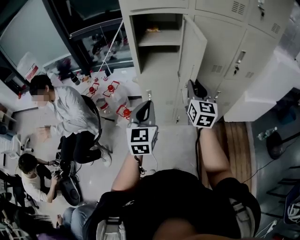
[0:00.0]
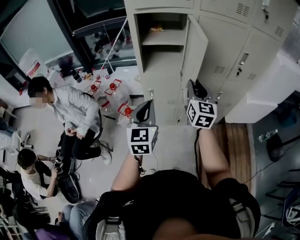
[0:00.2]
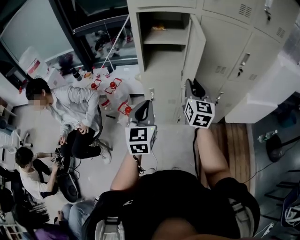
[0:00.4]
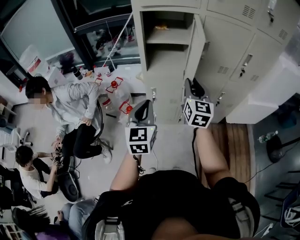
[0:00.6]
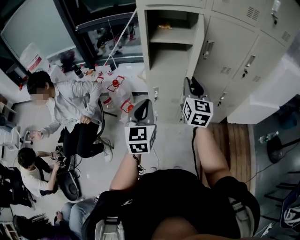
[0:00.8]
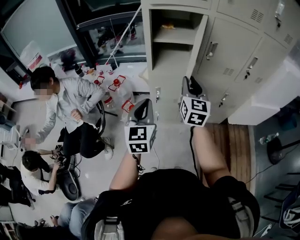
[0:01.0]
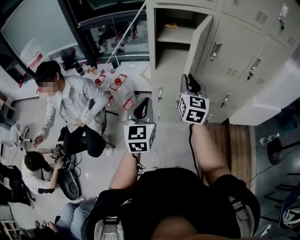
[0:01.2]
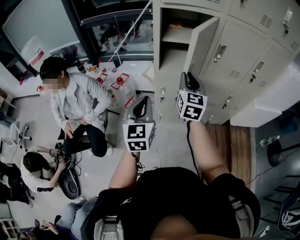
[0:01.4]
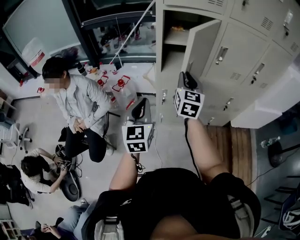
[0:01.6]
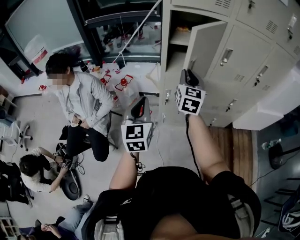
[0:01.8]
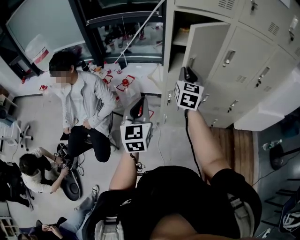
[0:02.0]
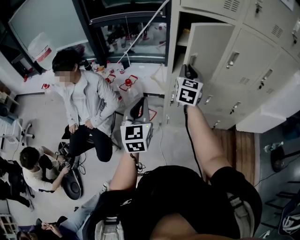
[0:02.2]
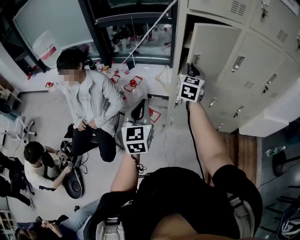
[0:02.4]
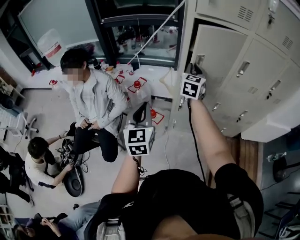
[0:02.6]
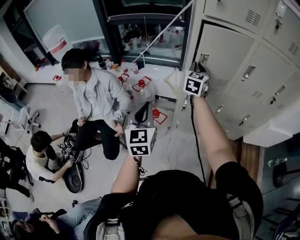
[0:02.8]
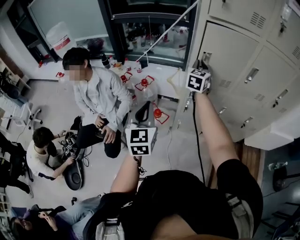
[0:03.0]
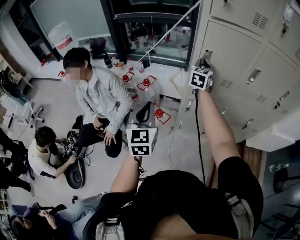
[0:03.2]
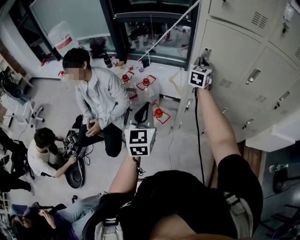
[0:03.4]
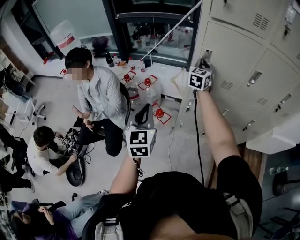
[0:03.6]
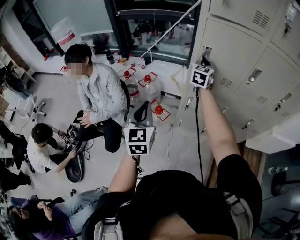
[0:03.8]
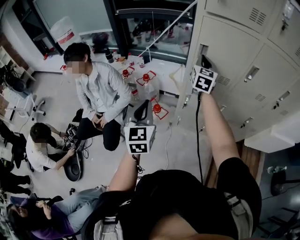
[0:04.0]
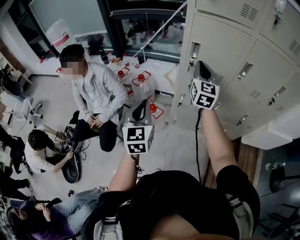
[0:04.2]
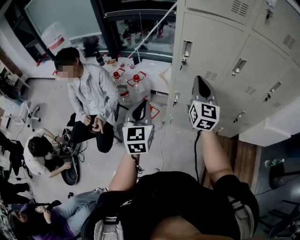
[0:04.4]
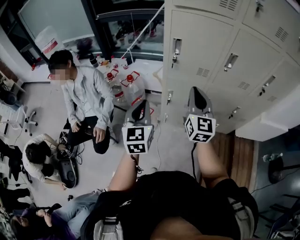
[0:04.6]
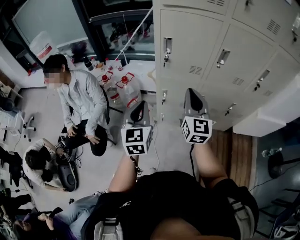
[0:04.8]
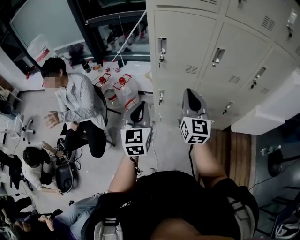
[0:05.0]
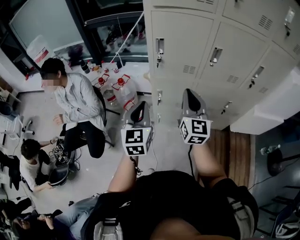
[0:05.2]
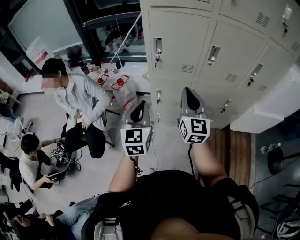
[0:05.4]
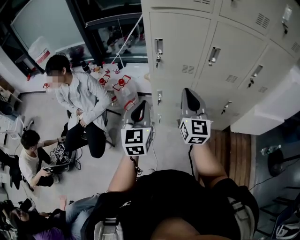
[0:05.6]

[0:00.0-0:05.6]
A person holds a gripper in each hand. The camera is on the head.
0:00.0 to 0:01.4: The grippers both shift to the left by some 15 cm.
0:01.4 to 0:02.8: The left gripper goes roughly 15 cm to the left; the right gripper travels forward and to the left by approximately 20 cm.
0:02.8 to 0:04.2: The right gripper is displaced backward by some 5 cm.
0:04.2 to 0:05.6: The right gripper travels backward and to the right by some 20 cm. The left gripper shifts roughly 15 cm to the right.

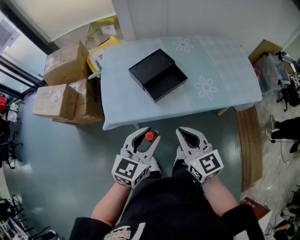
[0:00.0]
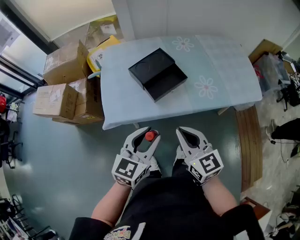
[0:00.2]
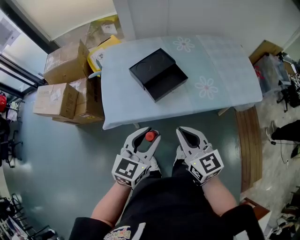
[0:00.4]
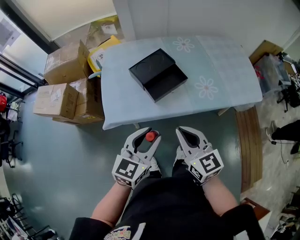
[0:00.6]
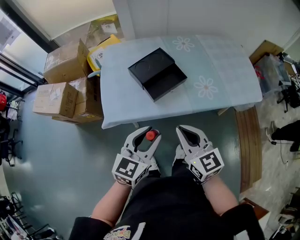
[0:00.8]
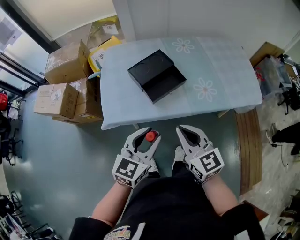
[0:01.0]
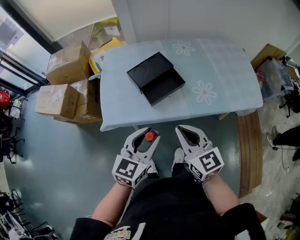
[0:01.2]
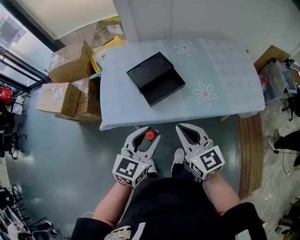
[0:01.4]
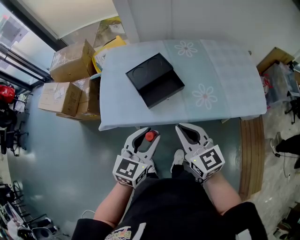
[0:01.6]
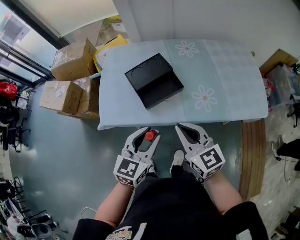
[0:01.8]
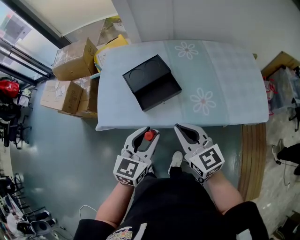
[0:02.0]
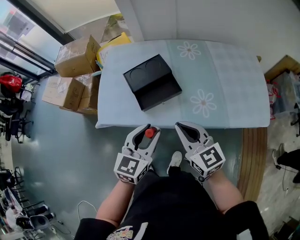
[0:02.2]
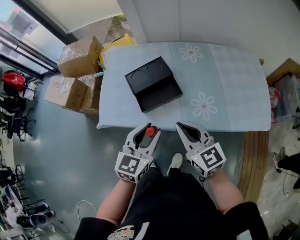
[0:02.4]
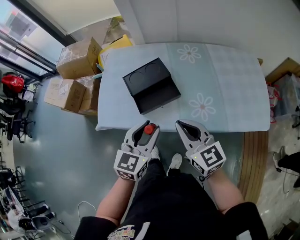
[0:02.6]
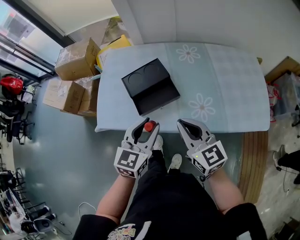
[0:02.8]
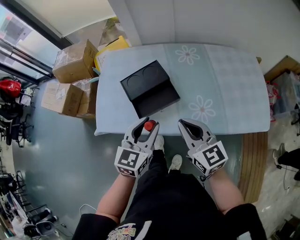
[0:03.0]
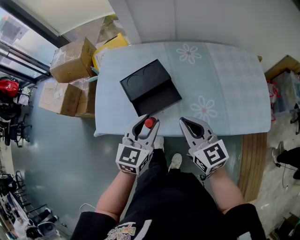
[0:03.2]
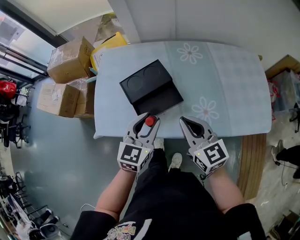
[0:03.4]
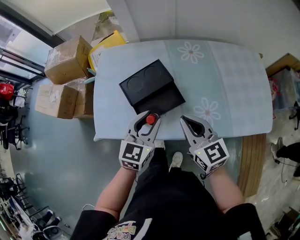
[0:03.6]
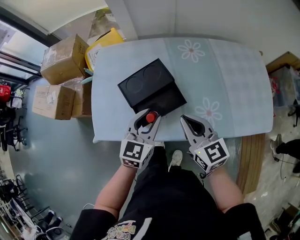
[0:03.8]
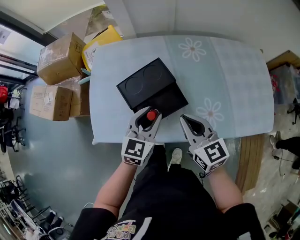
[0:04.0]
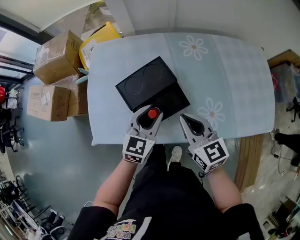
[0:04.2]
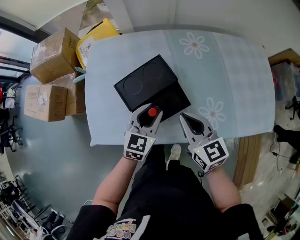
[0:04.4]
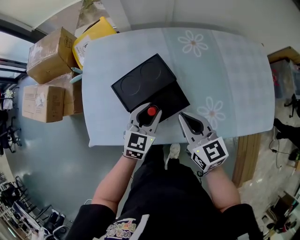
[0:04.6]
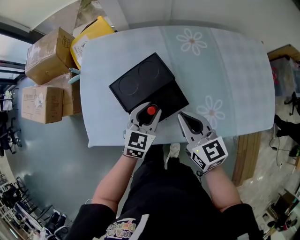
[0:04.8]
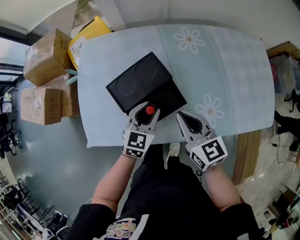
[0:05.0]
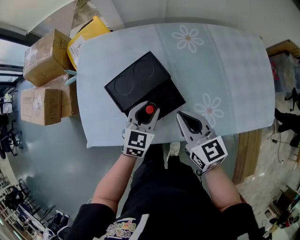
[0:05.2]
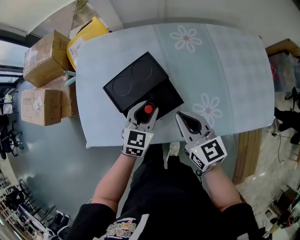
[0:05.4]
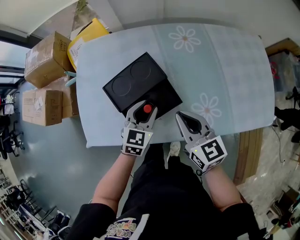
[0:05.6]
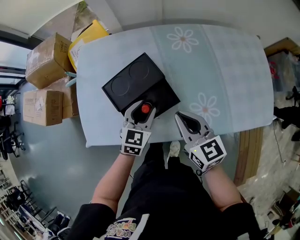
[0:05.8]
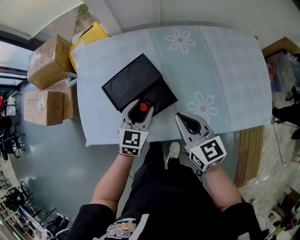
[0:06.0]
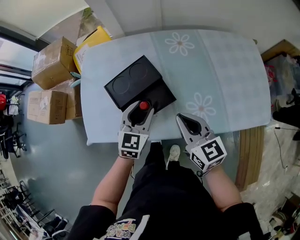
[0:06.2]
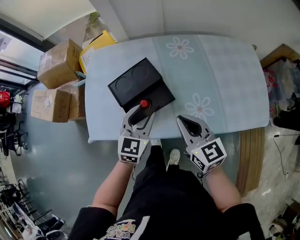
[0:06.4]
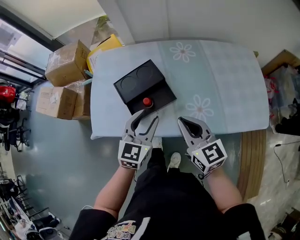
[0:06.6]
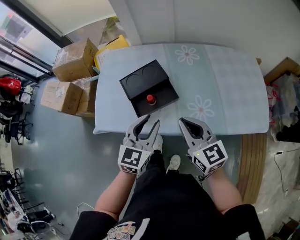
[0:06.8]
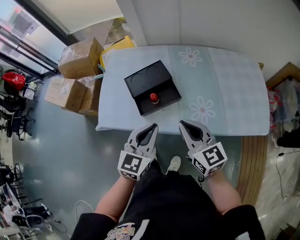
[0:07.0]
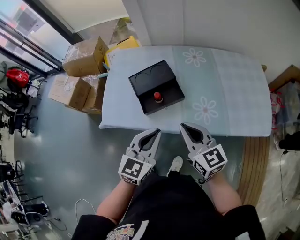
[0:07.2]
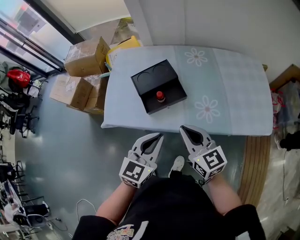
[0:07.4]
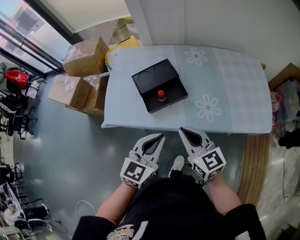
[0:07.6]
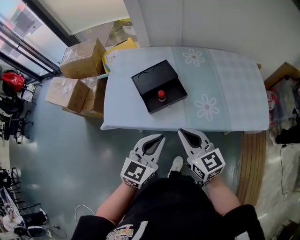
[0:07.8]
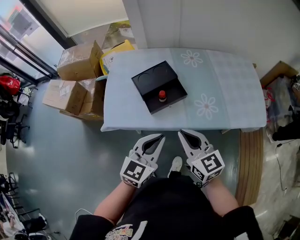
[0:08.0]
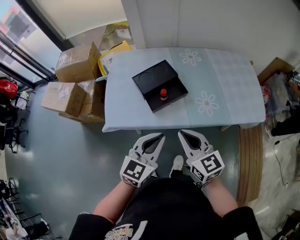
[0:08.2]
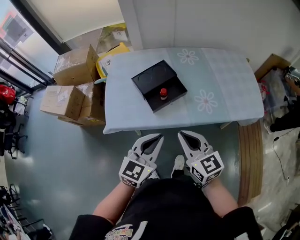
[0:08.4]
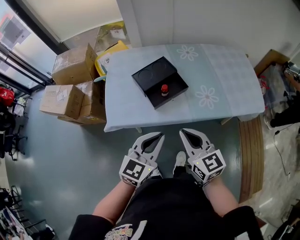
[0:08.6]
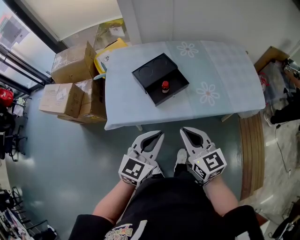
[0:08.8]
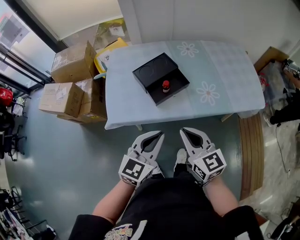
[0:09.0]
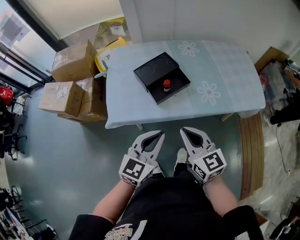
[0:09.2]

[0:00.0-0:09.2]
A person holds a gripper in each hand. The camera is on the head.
0:00.0 to 0:01.6: The left gripper moves to the right, approximately 5 cm. The right gripper travels to the right and forward by some 10 cm.
0:01.6 to 0:03.0: The two grippers go about 10 cm forward and to the right.
0:03.0 to 0:04.6: The grippers both shift forward and downward by some 20 cm.
0:04.6 to 0:06.2: The right gripper moves to the right, approximately 5 cm.
0:06.2 to 0:07.6: The right gripper is displaced backward by approximately 15 cm. Meanwhile the left gripper travels backward and upward by roughly 25 cm, and closes up.
0:07.6 to 0:09.2: The two grippers go approximately 10 cm to the left and backward.

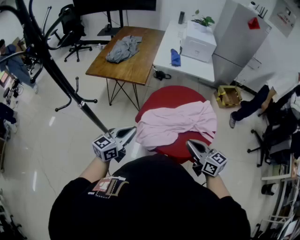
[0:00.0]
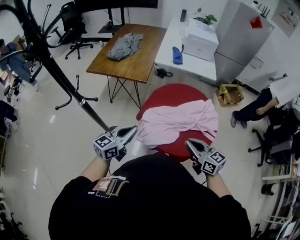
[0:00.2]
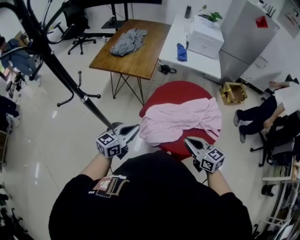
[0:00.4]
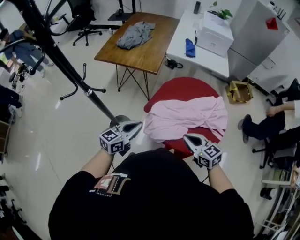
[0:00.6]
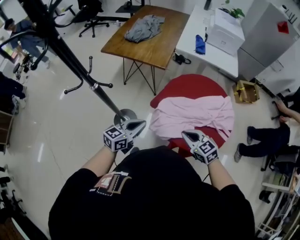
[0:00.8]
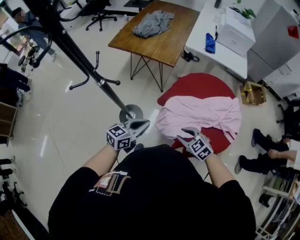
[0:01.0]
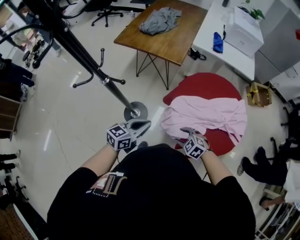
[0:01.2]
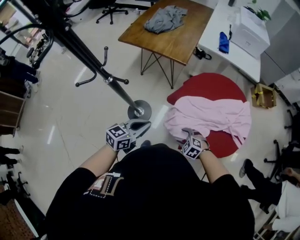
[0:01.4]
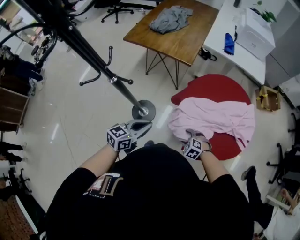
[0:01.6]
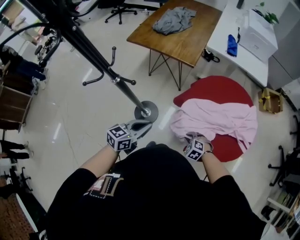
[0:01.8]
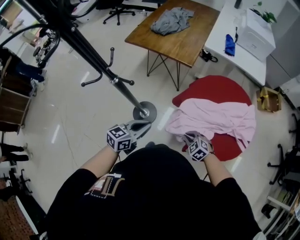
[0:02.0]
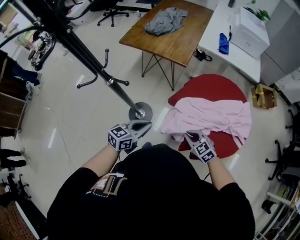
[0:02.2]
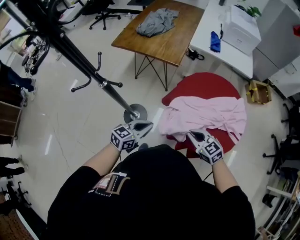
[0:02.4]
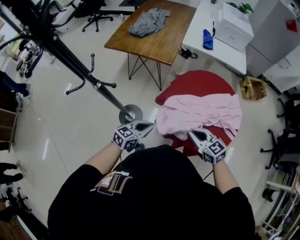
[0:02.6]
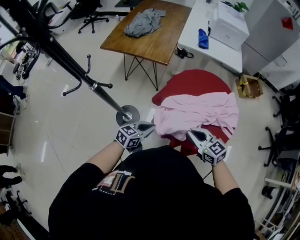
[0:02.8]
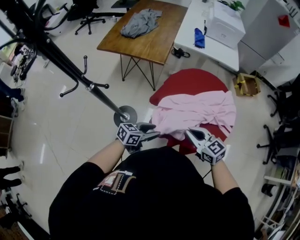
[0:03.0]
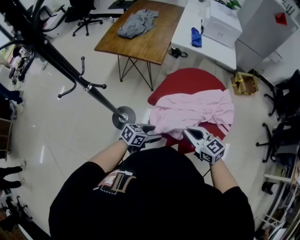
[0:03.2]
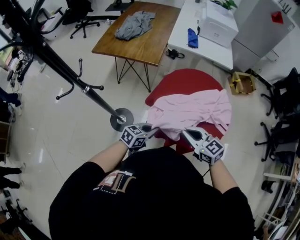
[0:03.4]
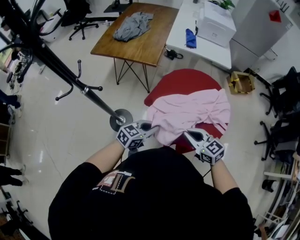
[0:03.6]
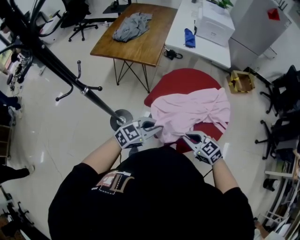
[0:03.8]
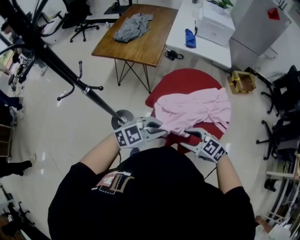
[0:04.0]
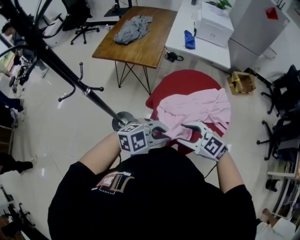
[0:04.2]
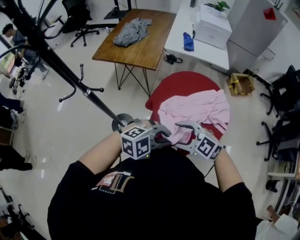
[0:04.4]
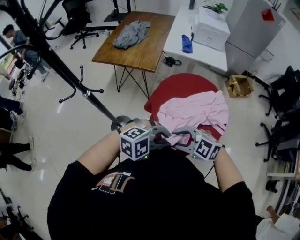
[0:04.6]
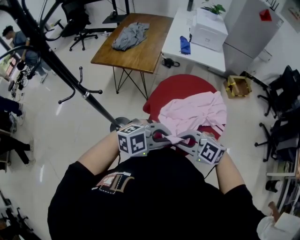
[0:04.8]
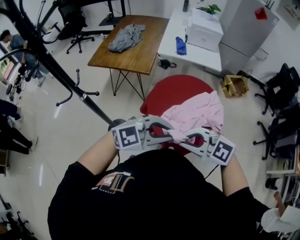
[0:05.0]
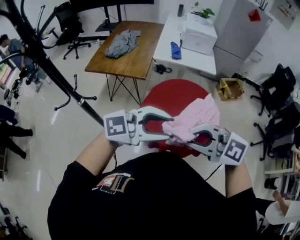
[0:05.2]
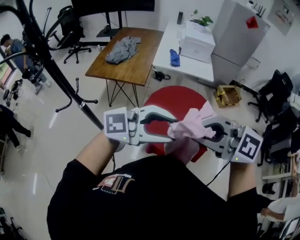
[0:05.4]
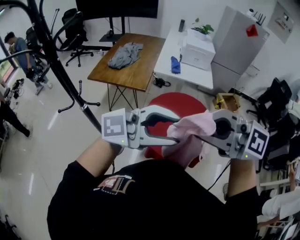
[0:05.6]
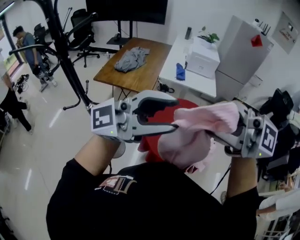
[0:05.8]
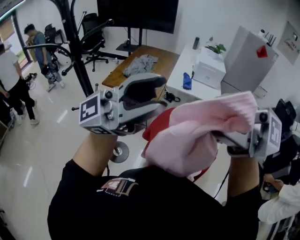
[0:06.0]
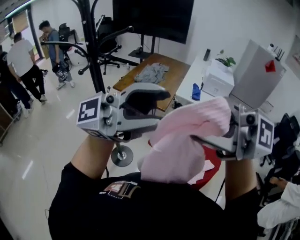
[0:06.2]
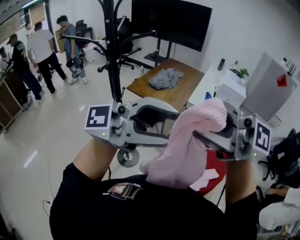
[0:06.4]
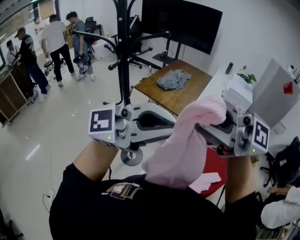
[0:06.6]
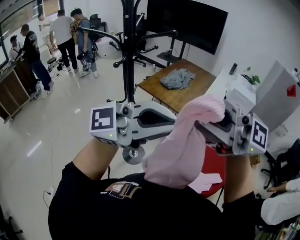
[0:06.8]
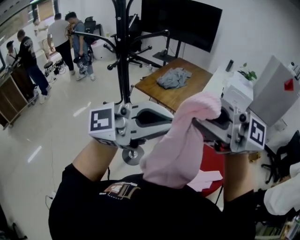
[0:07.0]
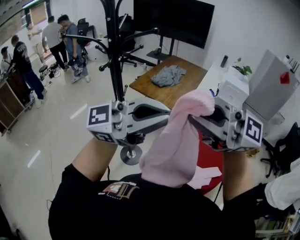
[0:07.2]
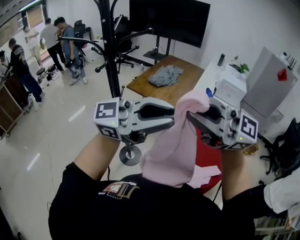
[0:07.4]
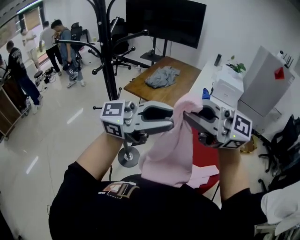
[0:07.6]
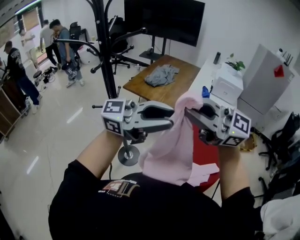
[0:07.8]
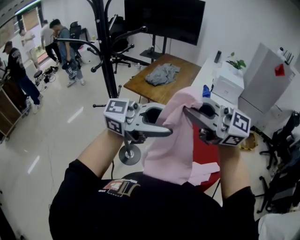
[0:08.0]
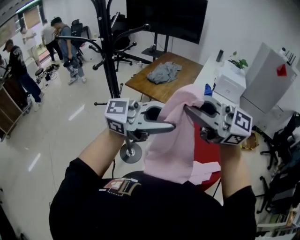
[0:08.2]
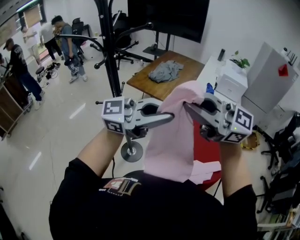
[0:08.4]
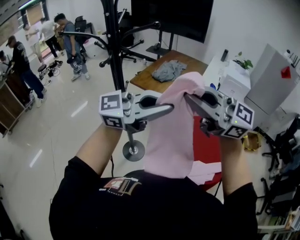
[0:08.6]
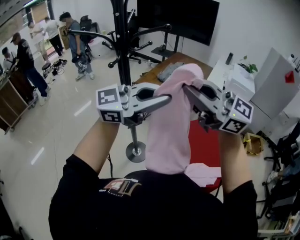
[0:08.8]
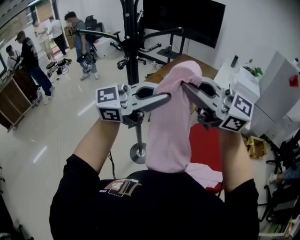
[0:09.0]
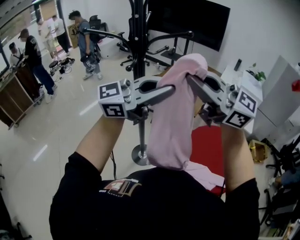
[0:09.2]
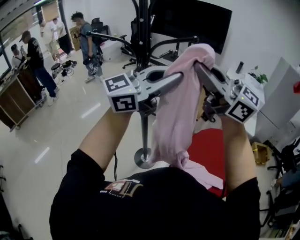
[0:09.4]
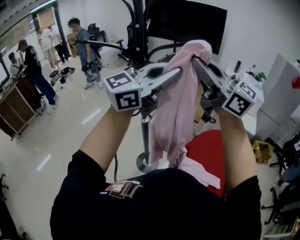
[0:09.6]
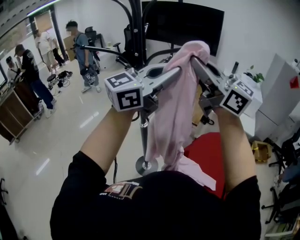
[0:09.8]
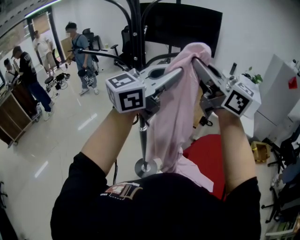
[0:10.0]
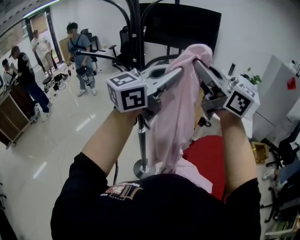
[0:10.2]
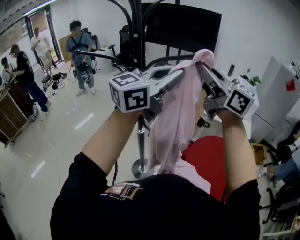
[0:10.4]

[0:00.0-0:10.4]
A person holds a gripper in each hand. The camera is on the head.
0:00.0 to 0:01.4: The right gripper travels downward and to the left by about 35 cm, angles its fingers downward, by about 50 degrees, and opens; the left gripper heads downward and to the left, covering about 15 cm.
0:01.4 to 0:03.0: The right gripper heads upward, covering about 20 cm, angles its fingers upward, by about 40 degrees, and closes up, while the left gripper is displaced to the right and downward by approximately 15 cm, swivels some 20 degrees, and opens.
0:03.0 to 0:04.4: The right gripper changes place by about 10 cm, changes its angle by roughly 30 degrees, and opens up. Meanwhile the left gripper moves upward, roughly 15 cm, rolls clockwise, seen from behind, by some 70 degrees, and closes its fingers.
0:04.4 to 0:06.0: The two grippers go about 40 cm upward. The right gripper points its fingers about 40 degrees further upward, and closes its fingers. The left gripper points its fingers about 70 degrees further upward, and opens.
0:06.0 to 0:07.4: The right gripper ends up roughly 15 cm from where it was. Meanwhile the left gripper heads downward, covering roughly 5 cm, and closes.
0:07.4 to 0:09.0: The left gripper moves some 10 cm, and opens and closes again. Meanwhile the right gripper ends up some 15 cm from where it was.
0:09.0 to 0:10.4: The left gripper ends up roughly 15 cm from where it was, and changes its angle by about 20 degrees, while the right gripper ends up roughly 15 cm from where it was, and changes its angle by approximately 30 degrees.
